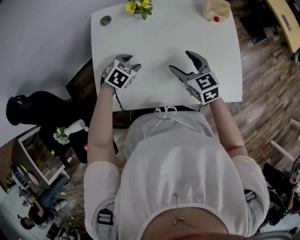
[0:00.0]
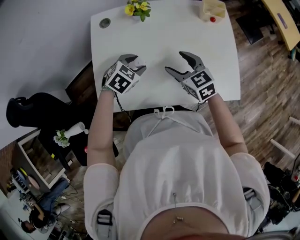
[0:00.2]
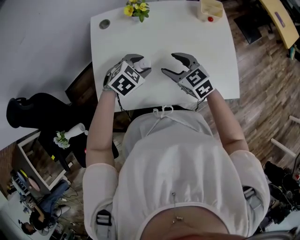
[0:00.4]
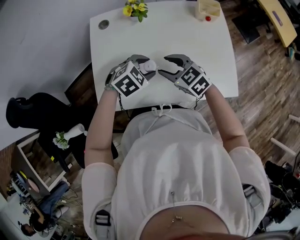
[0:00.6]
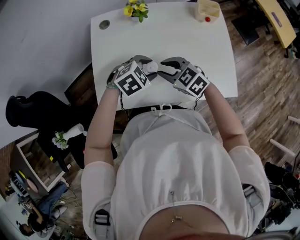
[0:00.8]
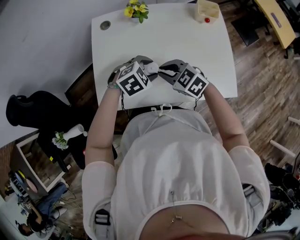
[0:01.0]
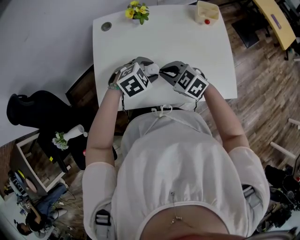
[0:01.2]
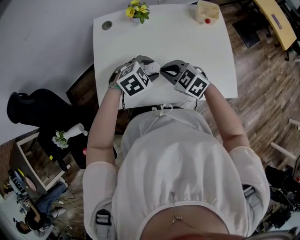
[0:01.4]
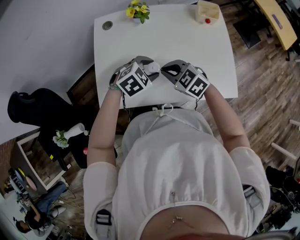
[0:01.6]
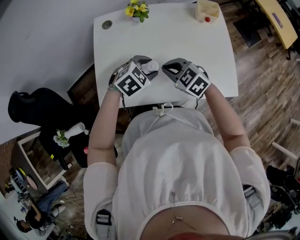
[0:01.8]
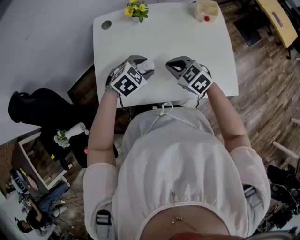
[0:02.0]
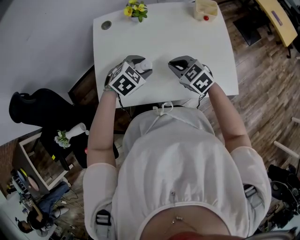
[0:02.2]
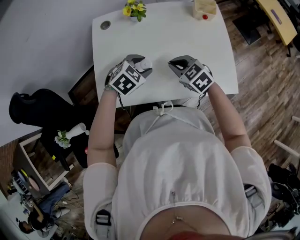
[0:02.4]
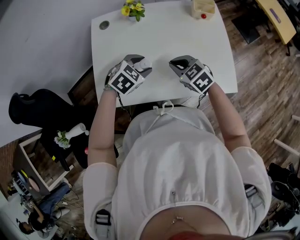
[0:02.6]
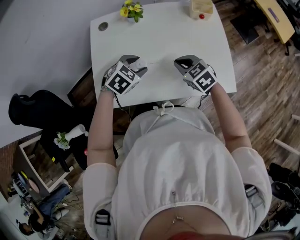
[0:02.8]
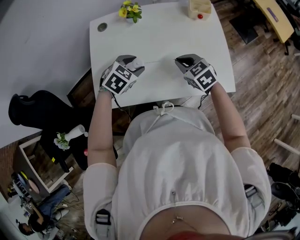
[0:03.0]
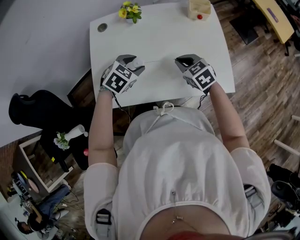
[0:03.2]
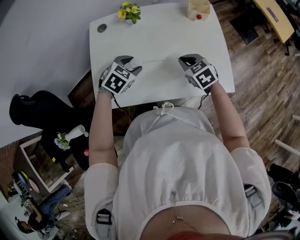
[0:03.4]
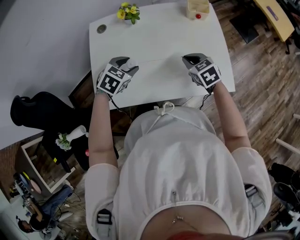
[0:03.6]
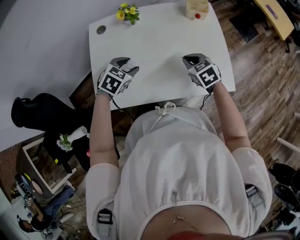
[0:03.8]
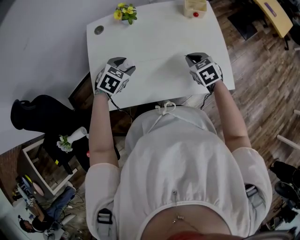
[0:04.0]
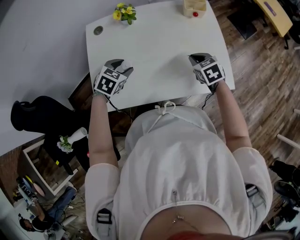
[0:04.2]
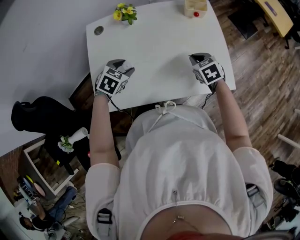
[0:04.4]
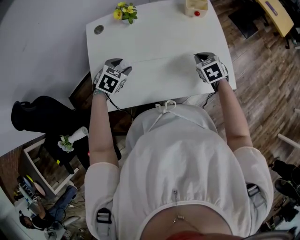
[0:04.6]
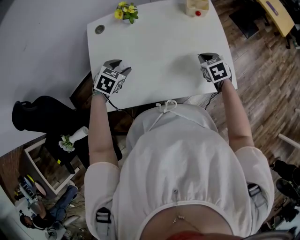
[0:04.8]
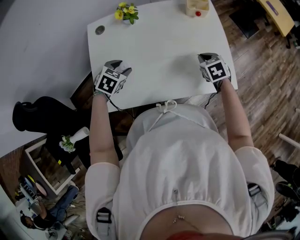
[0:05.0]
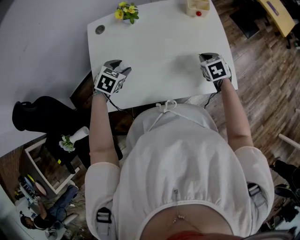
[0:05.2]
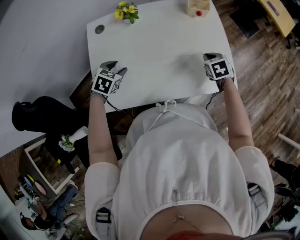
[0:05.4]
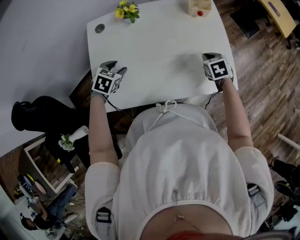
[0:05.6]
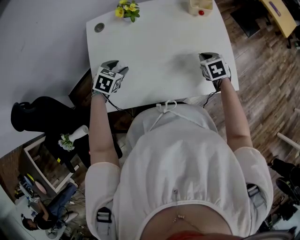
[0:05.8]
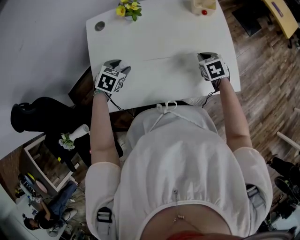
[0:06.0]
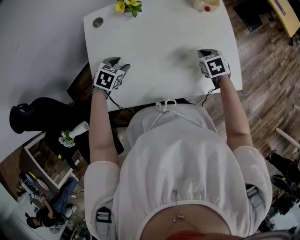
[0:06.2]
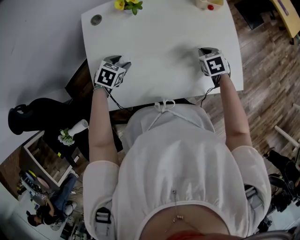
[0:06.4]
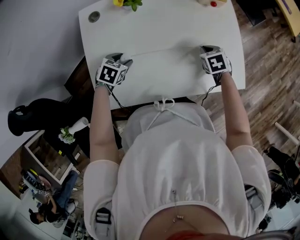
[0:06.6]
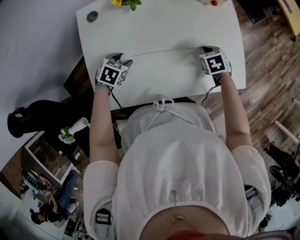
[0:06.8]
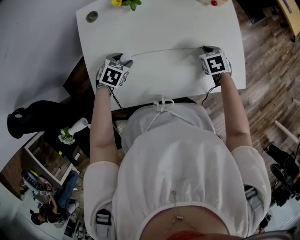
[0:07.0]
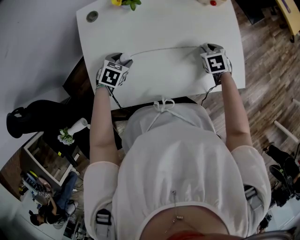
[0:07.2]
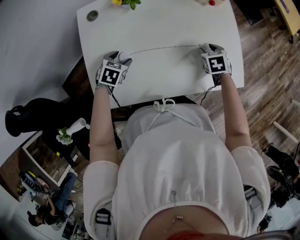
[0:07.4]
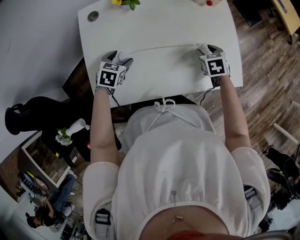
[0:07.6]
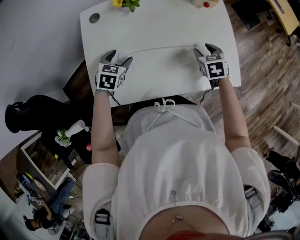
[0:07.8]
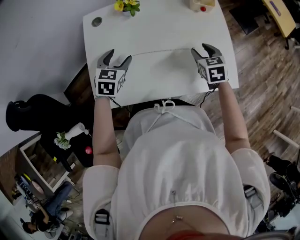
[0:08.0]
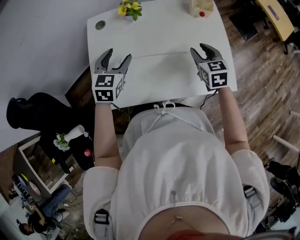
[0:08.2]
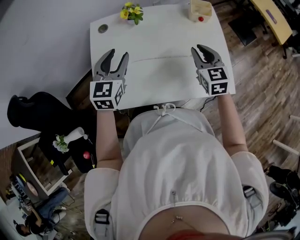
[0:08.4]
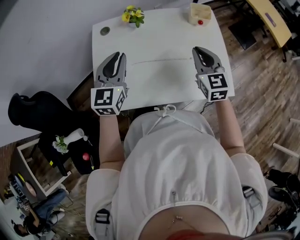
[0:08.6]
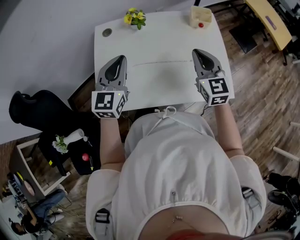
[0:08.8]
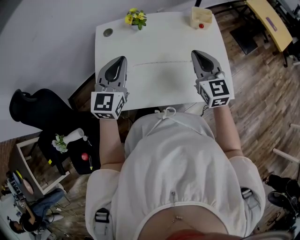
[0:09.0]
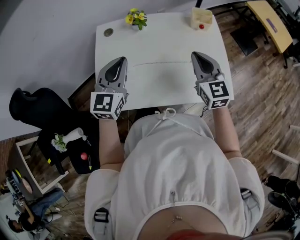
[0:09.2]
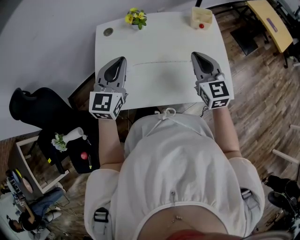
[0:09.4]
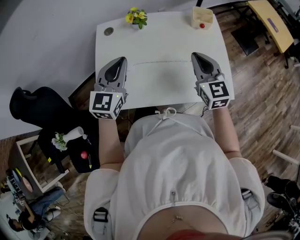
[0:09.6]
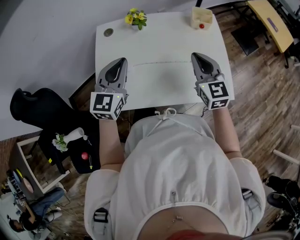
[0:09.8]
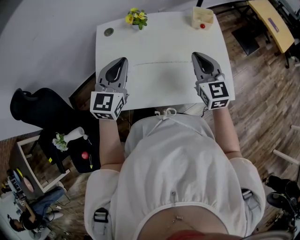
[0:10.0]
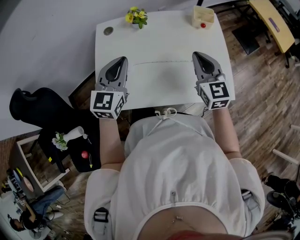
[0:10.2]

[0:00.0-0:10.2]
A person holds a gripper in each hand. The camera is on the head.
0:00.0 to 0:01.4: The right gripper ends up about 10 cm from where it was, swivels roughly 30 degrees, and closes its fingers. Meanwhile the left gripper moves roughly 15 cm, and rotates some 20 degrees.
0:01.4 to 0:03.0: The right gripper is displaced to the right by approximately 10 cm, and rotates roughly 20 degrees.
0:03.0 to 0:04.4: The right gripper travels to the right by about 10 cm.
0:04.4 to 0:05.8: The left gripper shifts about 5 cm to the left.
0:05.8 to 0:07.2: Both grippers travel together downward, roughly 5 cm.
0:07.2 to 0:08.8: The two grippers go some 25 cm upward. The right gripper angles its fingers upward, by about 50 degrees, while the left gripper tilts its fingers about 60 degrees upward, and closes.
0:08.8 to 0:10.2: The grippers stay close to where they were, moving slightly.

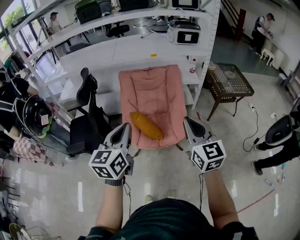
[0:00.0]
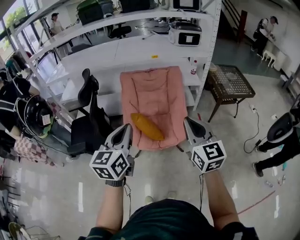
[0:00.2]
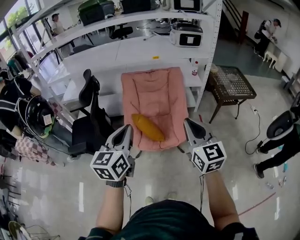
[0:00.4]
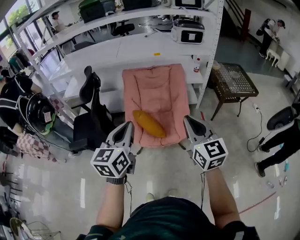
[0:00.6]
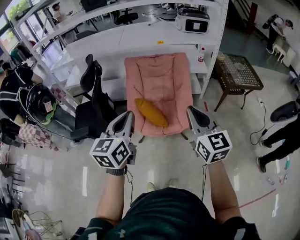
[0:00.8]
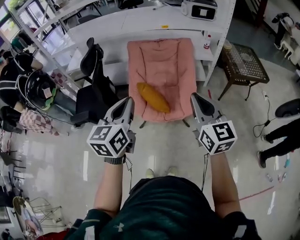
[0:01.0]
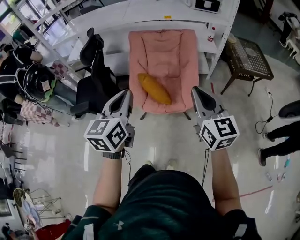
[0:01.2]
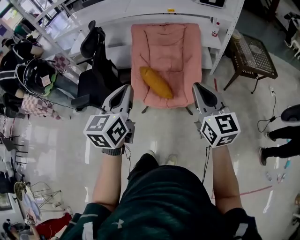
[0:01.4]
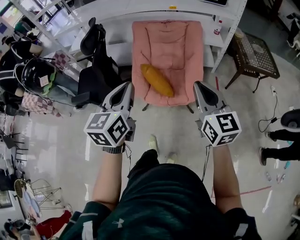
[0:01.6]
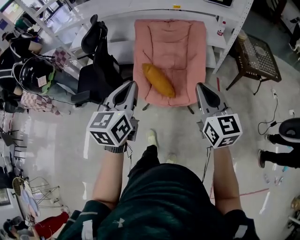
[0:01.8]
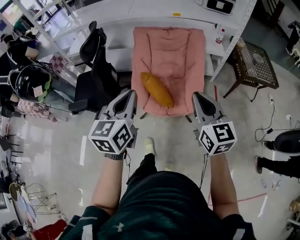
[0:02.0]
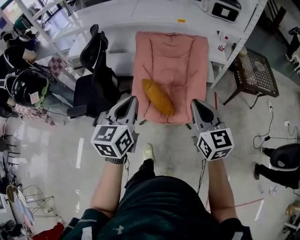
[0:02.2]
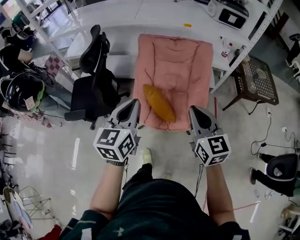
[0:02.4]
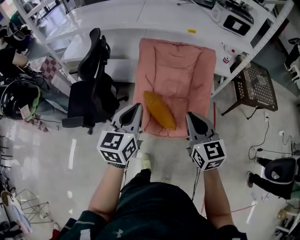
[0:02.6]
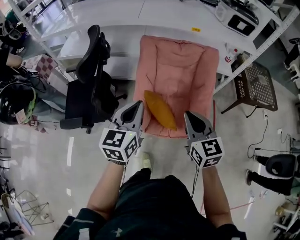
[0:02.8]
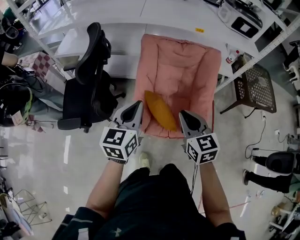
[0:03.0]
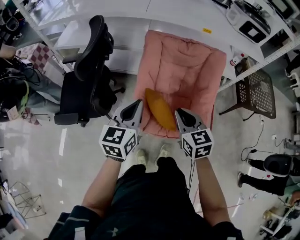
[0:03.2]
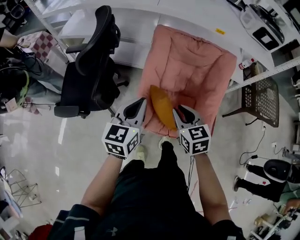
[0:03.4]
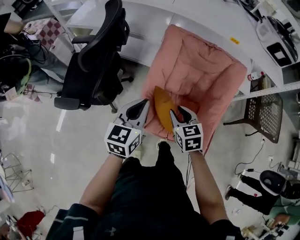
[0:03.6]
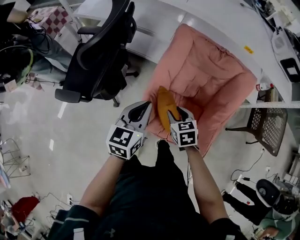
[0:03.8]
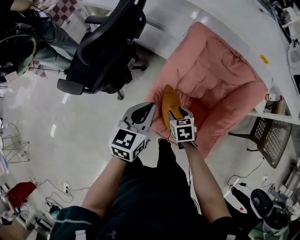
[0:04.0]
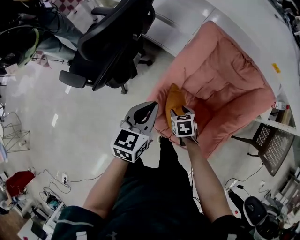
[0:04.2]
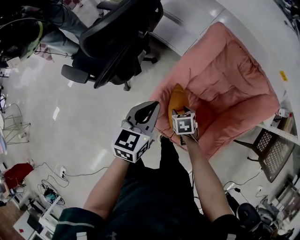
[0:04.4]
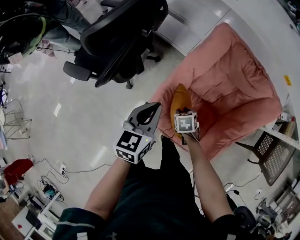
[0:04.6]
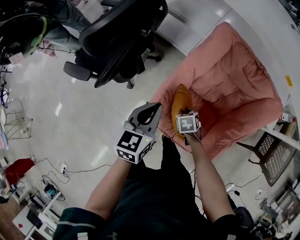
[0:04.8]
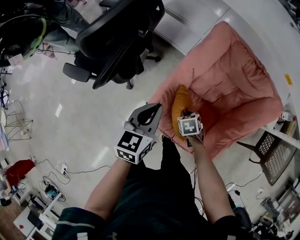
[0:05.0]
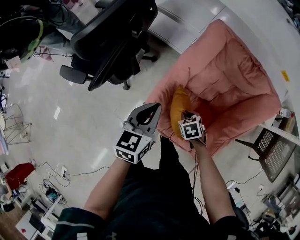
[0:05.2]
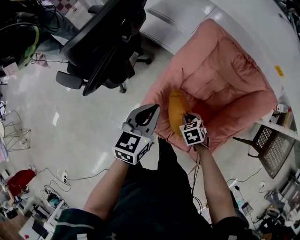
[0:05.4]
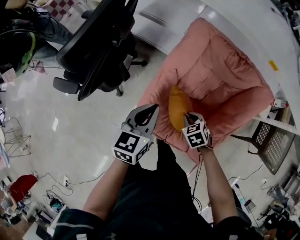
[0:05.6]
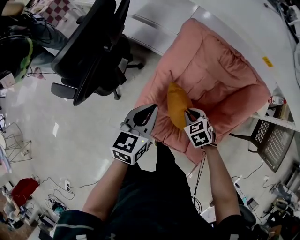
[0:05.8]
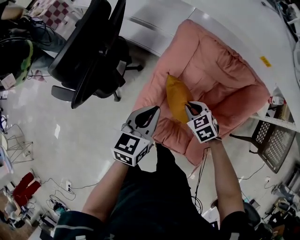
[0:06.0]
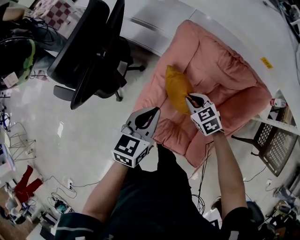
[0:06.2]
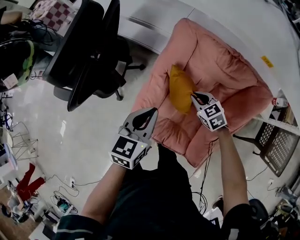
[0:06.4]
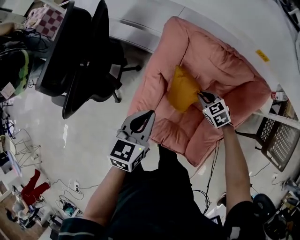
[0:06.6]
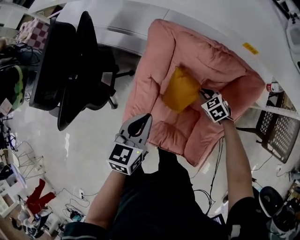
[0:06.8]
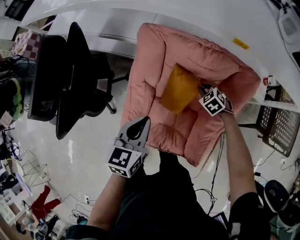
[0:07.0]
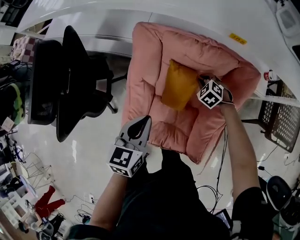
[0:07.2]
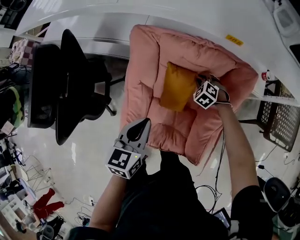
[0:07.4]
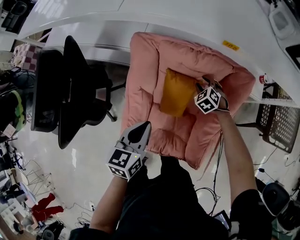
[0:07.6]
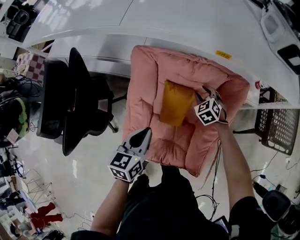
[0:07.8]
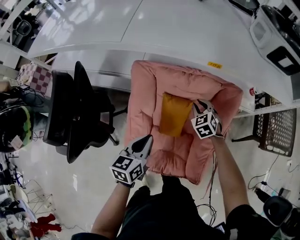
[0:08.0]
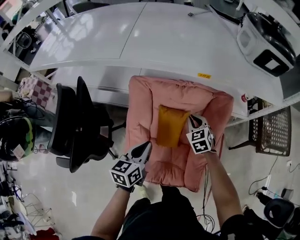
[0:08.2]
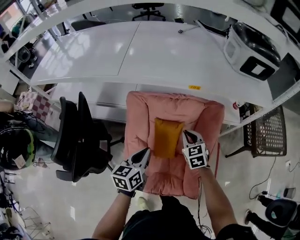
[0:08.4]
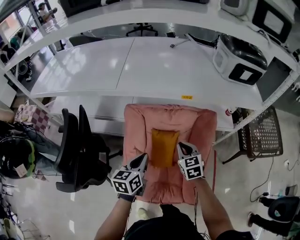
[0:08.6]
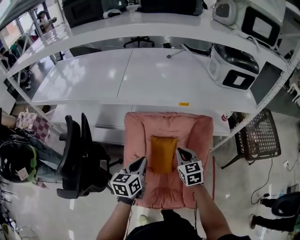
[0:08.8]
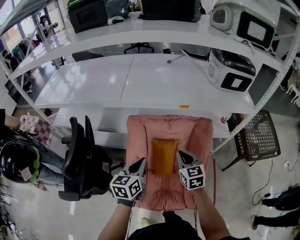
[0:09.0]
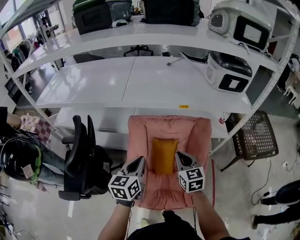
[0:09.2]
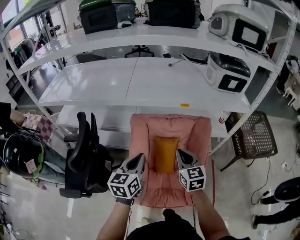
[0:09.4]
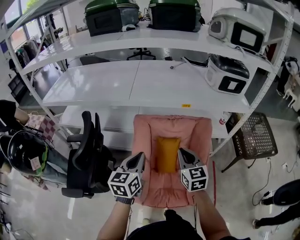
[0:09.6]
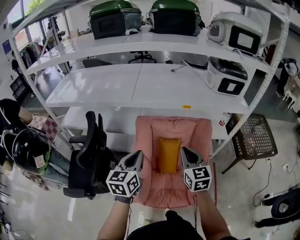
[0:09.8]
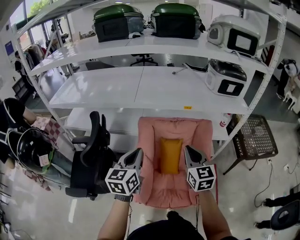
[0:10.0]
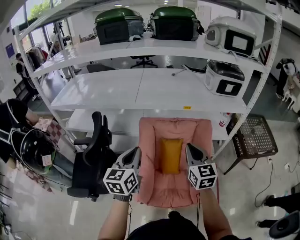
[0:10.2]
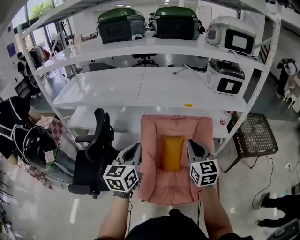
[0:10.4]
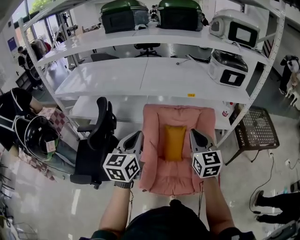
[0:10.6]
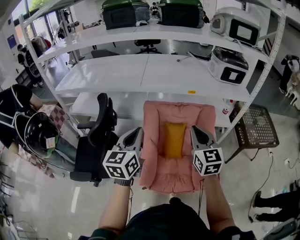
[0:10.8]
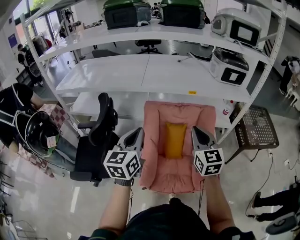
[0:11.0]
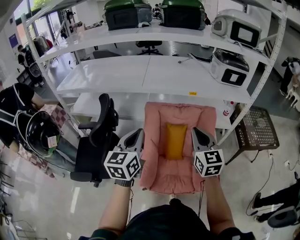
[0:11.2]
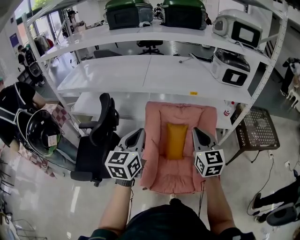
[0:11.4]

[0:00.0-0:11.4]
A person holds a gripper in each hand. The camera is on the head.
0:00.0 to 0:01.4: The right gripper shifts by roughly 5 cm.
0:01.4 to 0:02.8: The right gripper moves forward, to the left and downward, about 30 cm; the left gripper is displaced forward and to the left by some 30 cm.
0:02.8 to 0:04.2: The right gripper heads downward and forward, covering some 40 cm, tilts its fingers some 50 degrees downward, and opens its fingers; the left gripper travels downward and forward by approximately 20 cm, and rotates about 20 degrees.
0:04.2 to 0:05.6: The right gripper shifts by some 10 cm, and closes.
0:05.6 to 0:07.2: The left gripper goes about 15 cm to the right. The right gripper moves to the right and forward, roughly 30 cm.
0:07.2 to 0:08.6: The right gripper travels upward and backward by approximately 25 cm, tilts its fingers roughly 30 degrees upward, and opens, then closes again, while the left gripper heads upward, covering approximately 5 cm.
0:08.6 to 0:10.0: The left gripper is displaced upward, backward and to the left by about 25 cm, while the right gripper travels upward and backward by roughly 30 cm, and turns by approximately 20 degrees.
0:10.0 to 0:11.4: The right gripper changes place by about 5 cm. The left gripper goes some 5 cm backward.

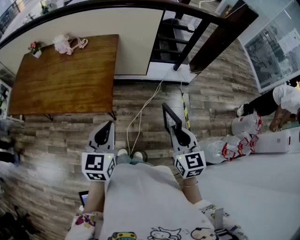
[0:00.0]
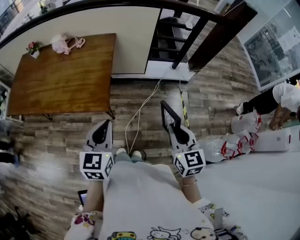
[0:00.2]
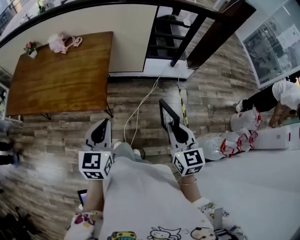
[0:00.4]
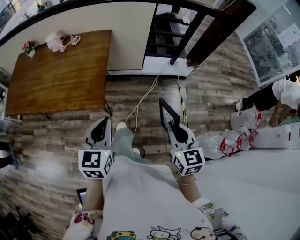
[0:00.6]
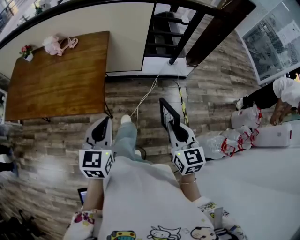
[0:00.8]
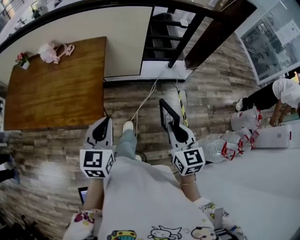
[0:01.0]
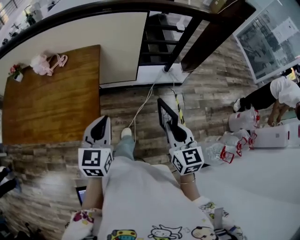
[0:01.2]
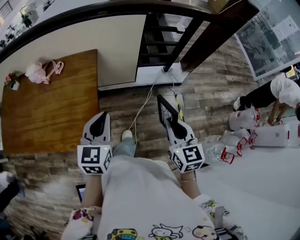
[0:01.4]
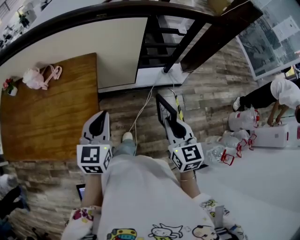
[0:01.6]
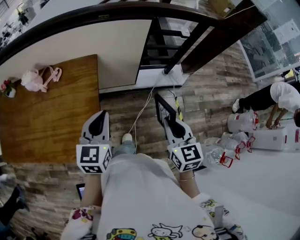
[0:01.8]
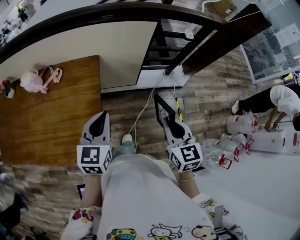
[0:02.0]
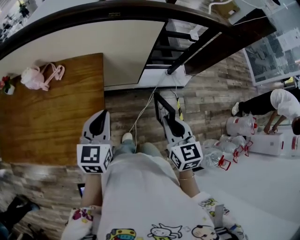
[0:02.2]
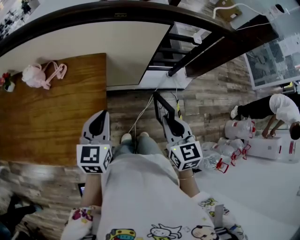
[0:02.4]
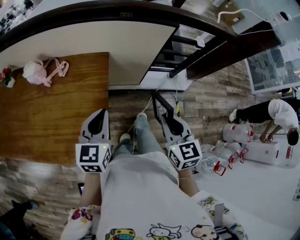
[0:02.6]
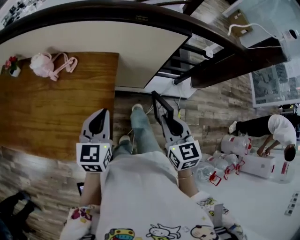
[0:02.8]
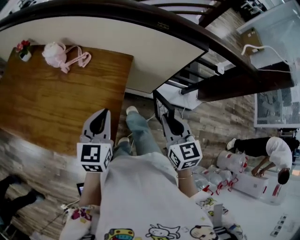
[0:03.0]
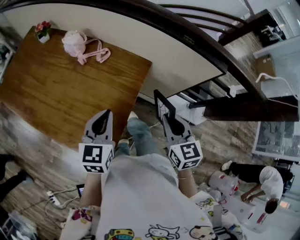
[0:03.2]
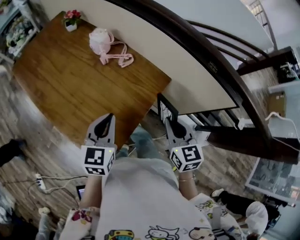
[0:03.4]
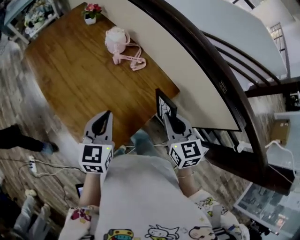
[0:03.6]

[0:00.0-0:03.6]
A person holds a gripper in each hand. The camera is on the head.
0:00.0 to 0:01.8: Both grippers travel together forward, approximately 30 cm.
0:01.8 to 0:03.6: The left gripper shifts by about 20 cm, and turns by some 50 degrees; the right gripper ends up some 40 cm from where it was, and swivels some 60 degrees.
